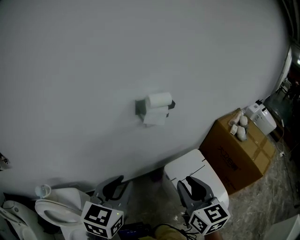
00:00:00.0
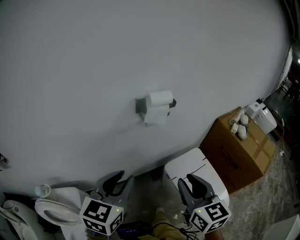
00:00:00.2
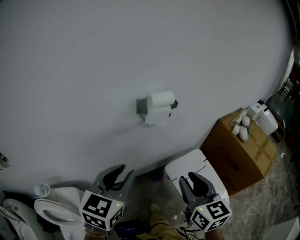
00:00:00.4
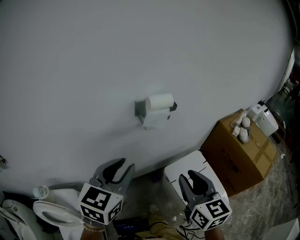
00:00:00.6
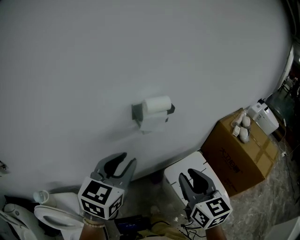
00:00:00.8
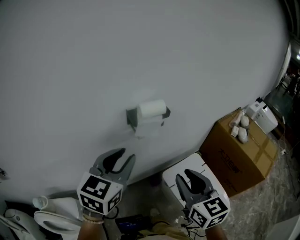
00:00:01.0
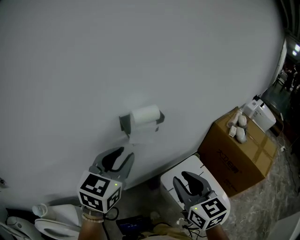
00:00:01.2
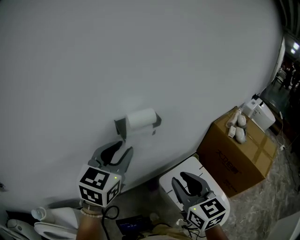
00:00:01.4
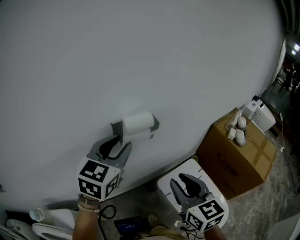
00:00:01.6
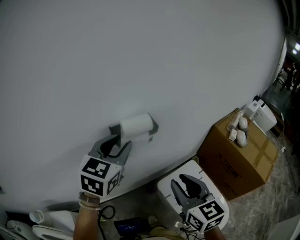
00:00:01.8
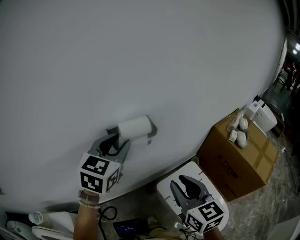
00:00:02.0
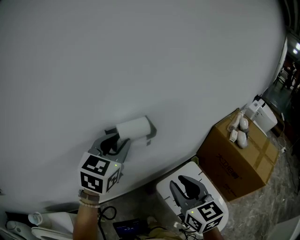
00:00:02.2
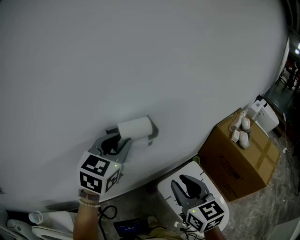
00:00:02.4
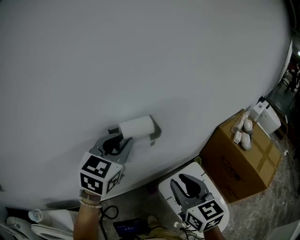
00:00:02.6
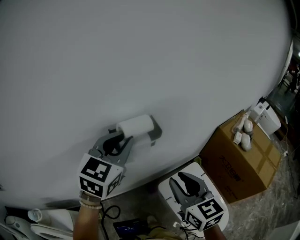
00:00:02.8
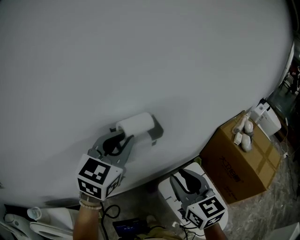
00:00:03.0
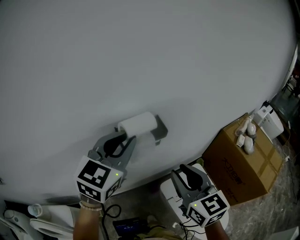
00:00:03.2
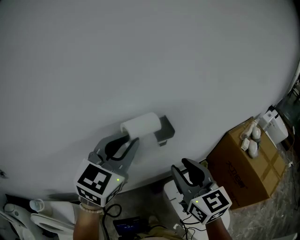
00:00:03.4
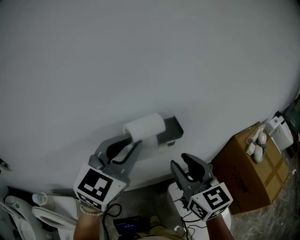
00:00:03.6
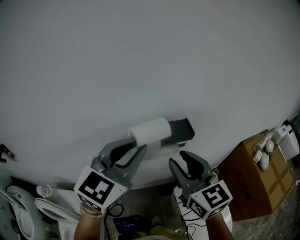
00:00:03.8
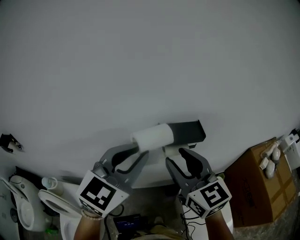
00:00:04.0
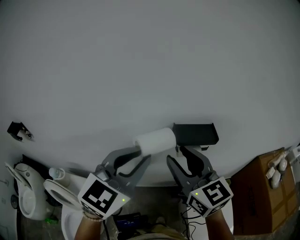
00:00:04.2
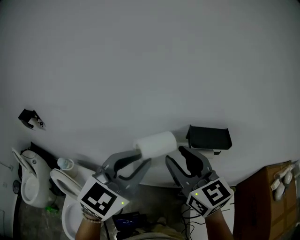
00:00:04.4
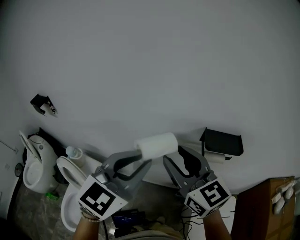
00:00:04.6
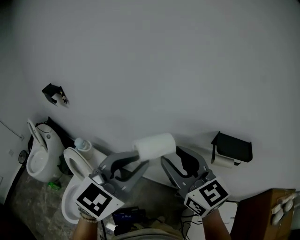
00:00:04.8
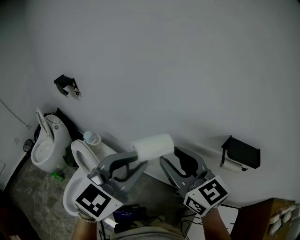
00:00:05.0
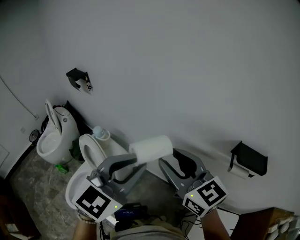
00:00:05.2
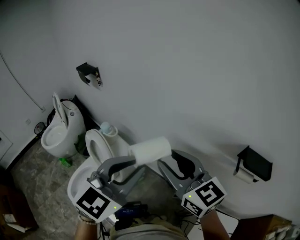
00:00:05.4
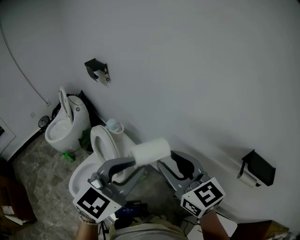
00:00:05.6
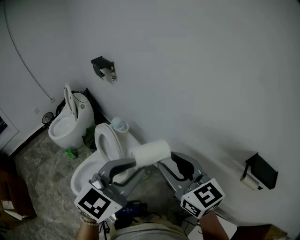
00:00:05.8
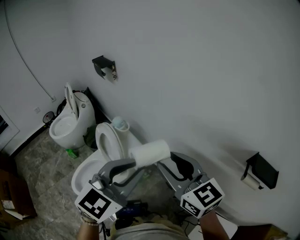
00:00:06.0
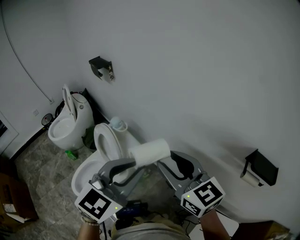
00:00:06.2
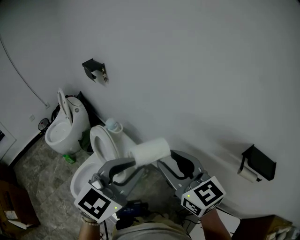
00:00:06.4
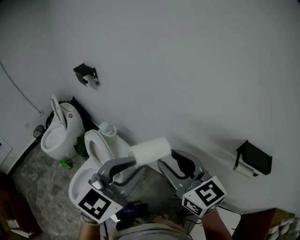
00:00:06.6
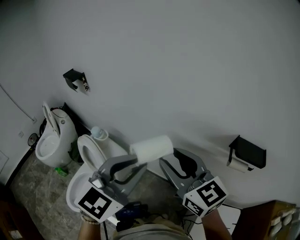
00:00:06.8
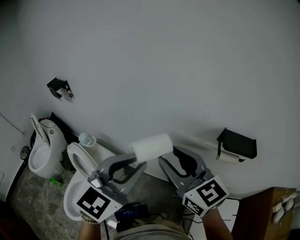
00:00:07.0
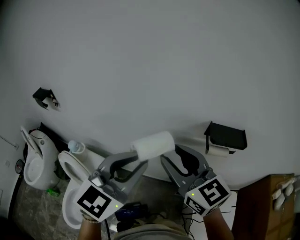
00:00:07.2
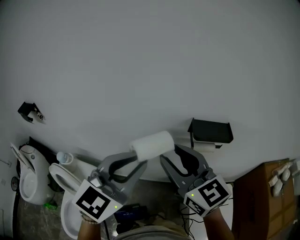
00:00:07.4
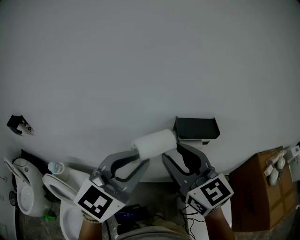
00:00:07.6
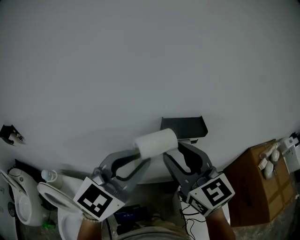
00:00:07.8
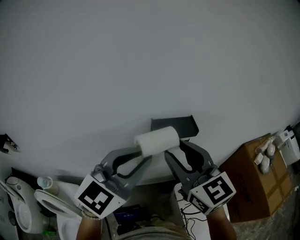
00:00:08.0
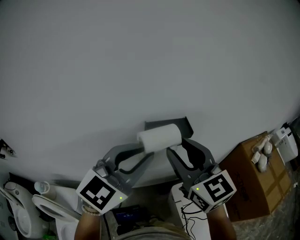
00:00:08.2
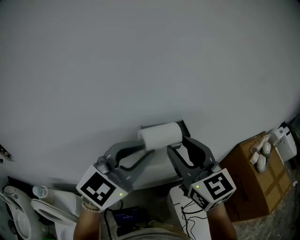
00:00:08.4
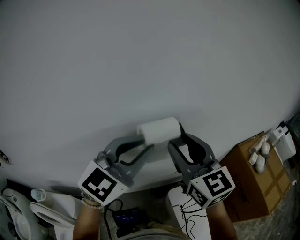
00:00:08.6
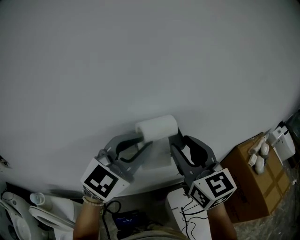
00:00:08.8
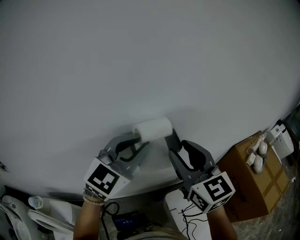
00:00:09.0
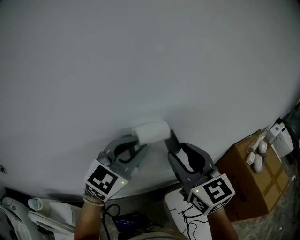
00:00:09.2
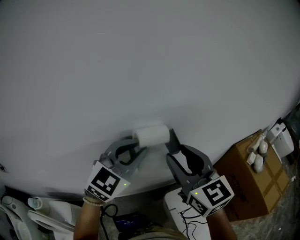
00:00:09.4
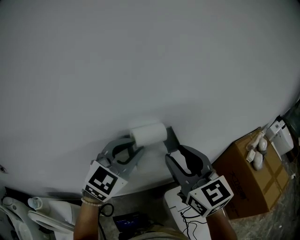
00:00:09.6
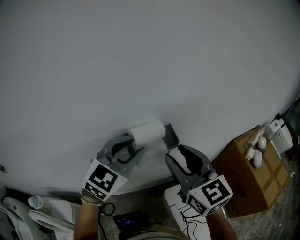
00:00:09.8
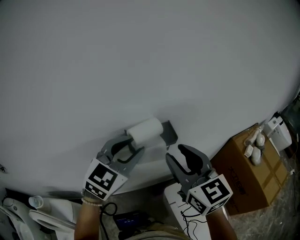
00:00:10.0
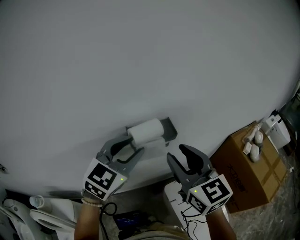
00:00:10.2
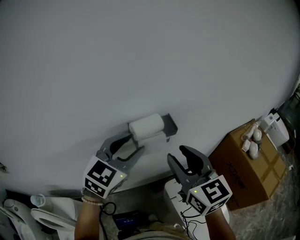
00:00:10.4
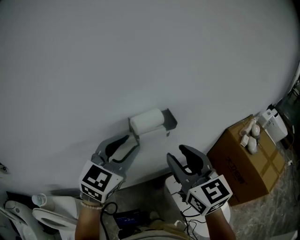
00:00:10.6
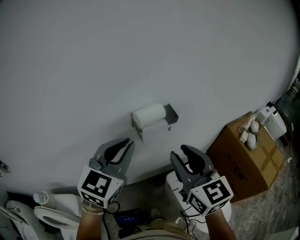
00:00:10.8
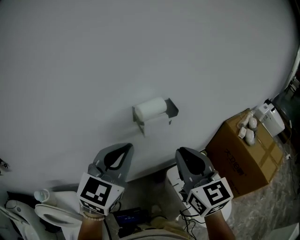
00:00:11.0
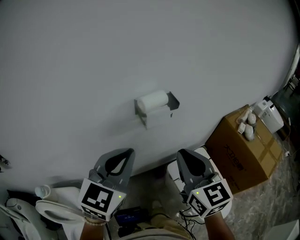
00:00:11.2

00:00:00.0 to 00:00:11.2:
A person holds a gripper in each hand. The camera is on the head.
00:00:00.0 to 00:00:01.6: The right gripper shifts some 15 cm forward. The left gripper moves forward, approximately 25 cm.
00:00:01.6 to 00:00:03.2: The right gripper is displaced forward by approximately 5 cm.
00:00:03.2 to 00:00:04.8: The left gripper moves about 25 cm, and turns by approximately 30 degrees, while the right gripper ends up roughly 30 cm from where it was, and rotates approximately 50 degrees.
00:00:04.8 to 00:00:06.4: The two grippers go about 15 cm to the left. The right gripper changes its angle by some 20 degrees.
00:00:06.4 to 00:00:08.0: The left gripper shifts by roughly 30 cm, and rotates about 50 degrees, while the right gripper moves approximately 30 cm, and turns by roughly 50 degrees.
00:00:08.0 to 00:00:09.6: The right gripper shifts about 10 cm forward and to the right, while the left gripper goes roughly 15 cm forward.
00:00:09.6 to 00:00:11.2: The two grippers go approximately 20 cm backward. The left gripper opens and closes again; the right gripper closes its fingers.

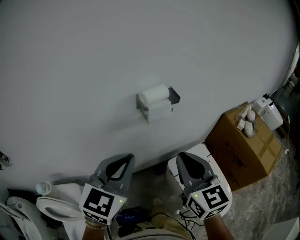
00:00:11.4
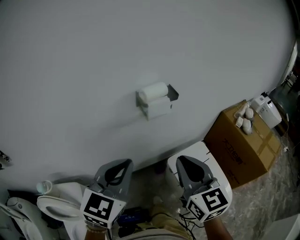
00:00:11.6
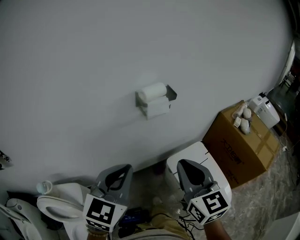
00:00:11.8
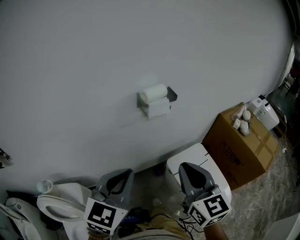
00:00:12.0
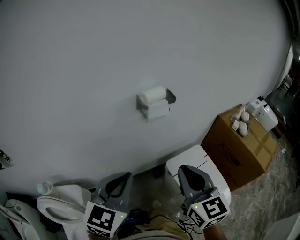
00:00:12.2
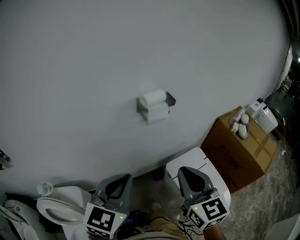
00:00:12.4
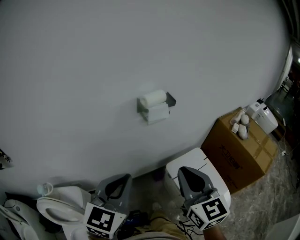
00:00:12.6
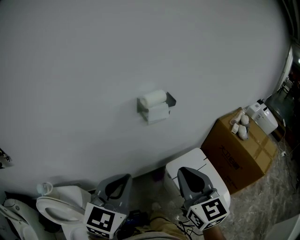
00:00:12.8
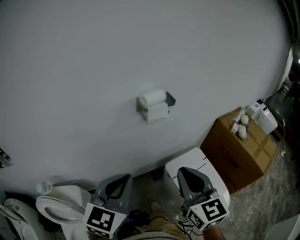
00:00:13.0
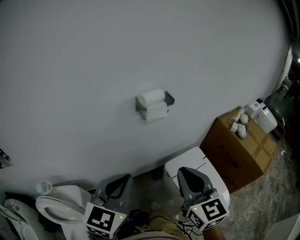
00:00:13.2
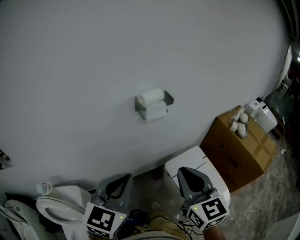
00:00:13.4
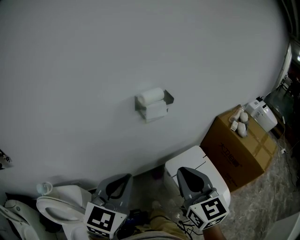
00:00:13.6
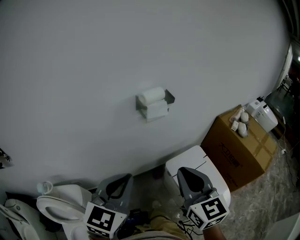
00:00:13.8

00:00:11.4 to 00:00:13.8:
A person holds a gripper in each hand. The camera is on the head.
00:00:11.4 to 00:00:12.6: The grippers both shift backward by approximately 10 cm.
00:00:12.6 to 00:00:13.8: Neither gripper changes place.

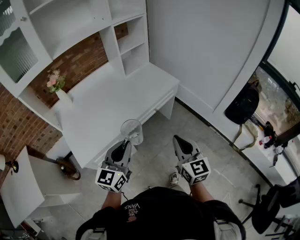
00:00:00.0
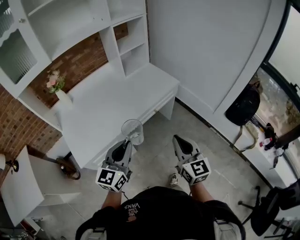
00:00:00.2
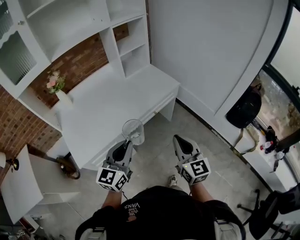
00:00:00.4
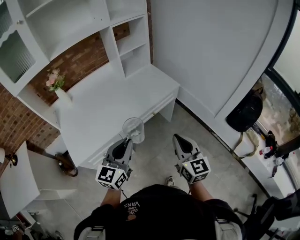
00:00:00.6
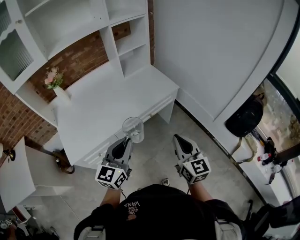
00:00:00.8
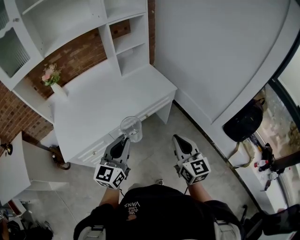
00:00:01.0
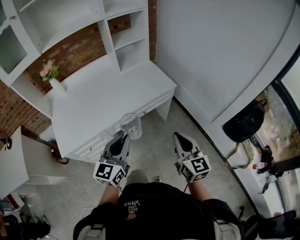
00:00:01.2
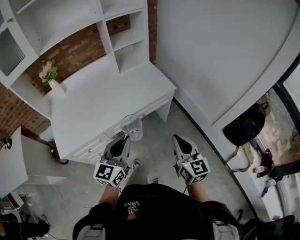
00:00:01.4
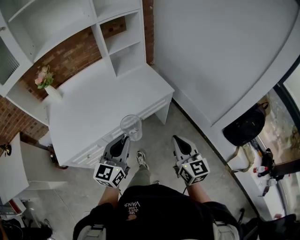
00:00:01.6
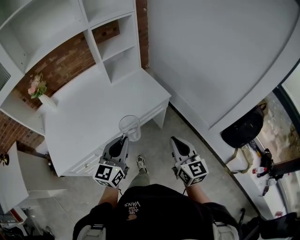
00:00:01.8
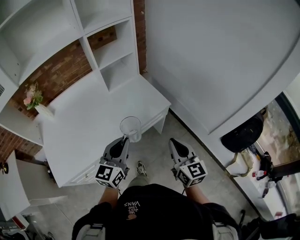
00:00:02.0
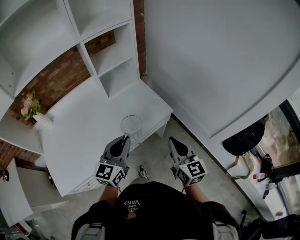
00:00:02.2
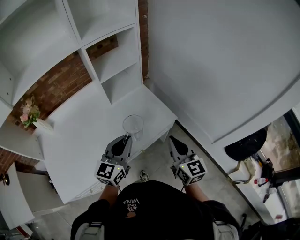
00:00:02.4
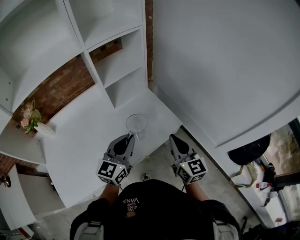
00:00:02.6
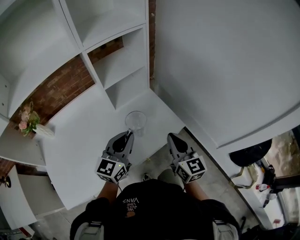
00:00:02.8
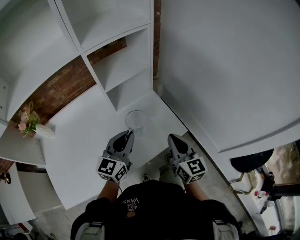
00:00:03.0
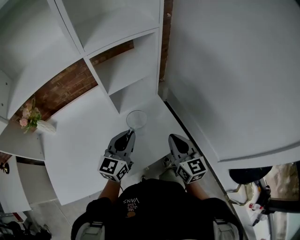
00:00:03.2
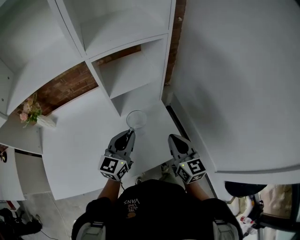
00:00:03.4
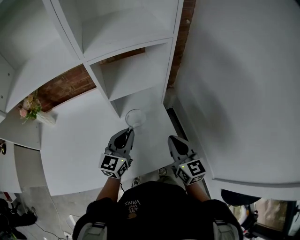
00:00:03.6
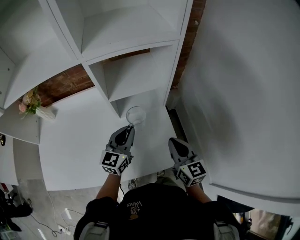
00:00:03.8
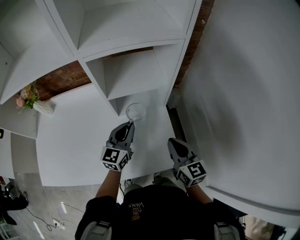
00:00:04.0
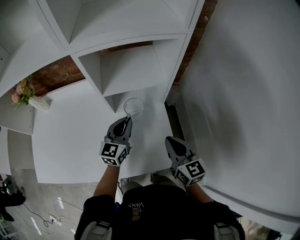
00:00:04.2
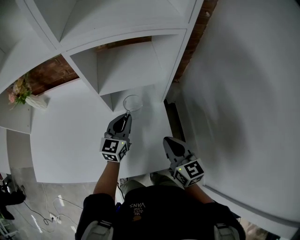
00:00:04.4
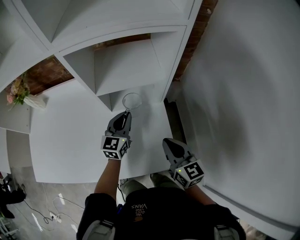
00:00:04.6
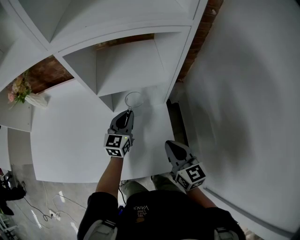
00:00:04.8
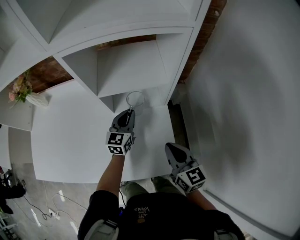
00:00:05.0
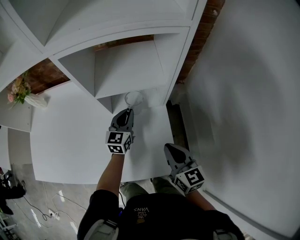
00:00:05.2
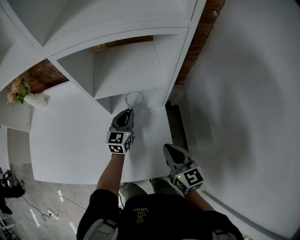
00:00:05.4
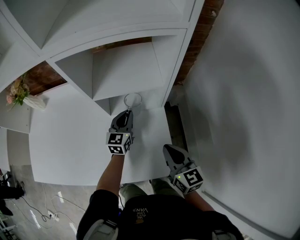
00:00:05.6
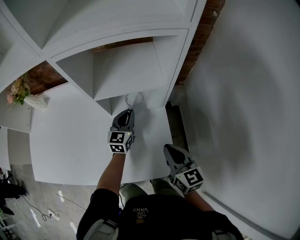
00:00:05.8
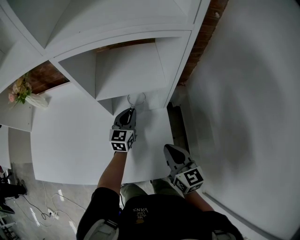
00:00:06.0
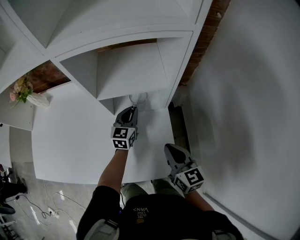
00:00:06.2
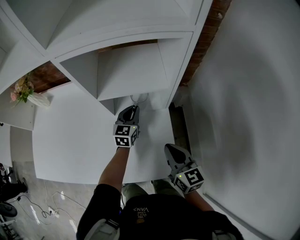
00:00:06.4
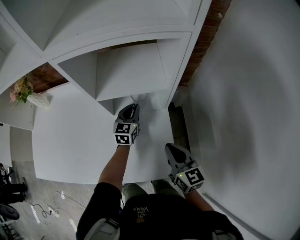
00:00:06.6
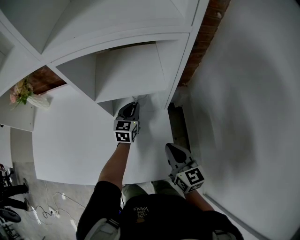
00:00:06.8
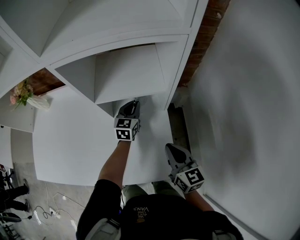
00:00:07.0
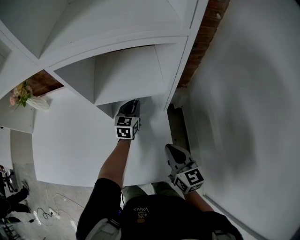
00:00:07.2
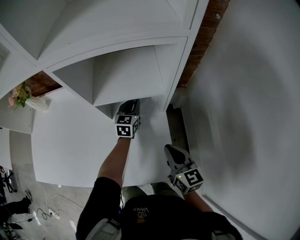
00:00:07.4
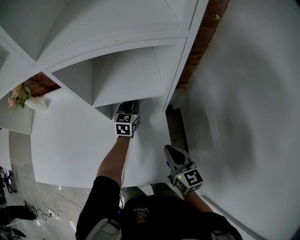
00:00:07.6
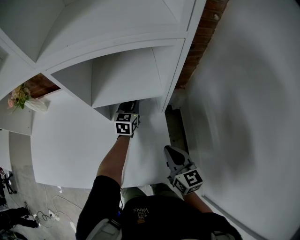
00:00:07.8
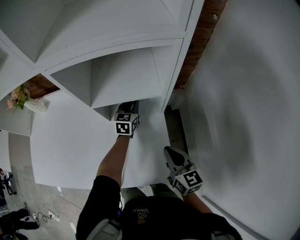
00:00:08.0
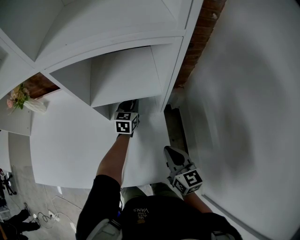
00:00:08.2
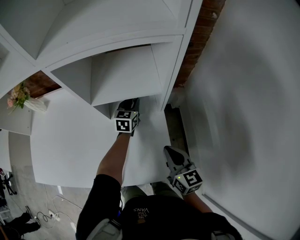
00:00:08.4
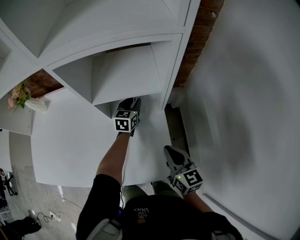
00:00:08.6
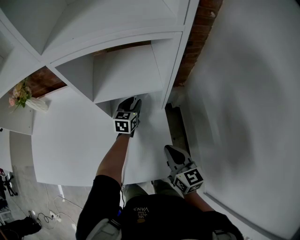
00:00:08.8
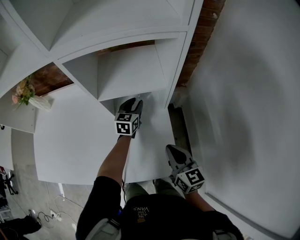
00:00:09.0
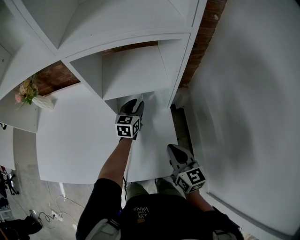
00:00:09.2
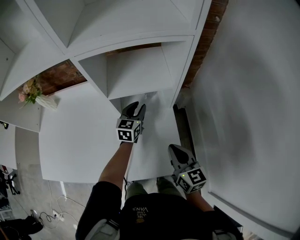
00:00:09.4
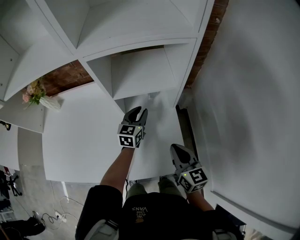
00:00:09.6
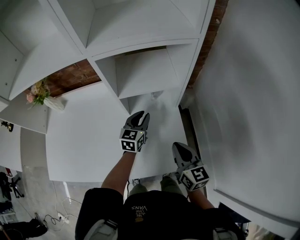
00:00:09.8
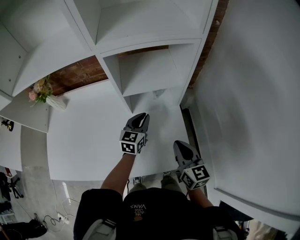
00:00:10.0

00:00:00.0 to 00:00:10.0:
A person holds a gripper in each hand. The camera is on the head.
00:00:00.0 to 00:00:01.4: Both grippers travel together to the right and forward, about 20 cm.
00:00:01.4 to 00:00:02.8: Both grippers move forward, roughly 35 cm.
00:00:02.8 to 00:00:04.2: The right gripper moves approximately 20 cm, and turns by about 30 degrees. Meanwhile the left gripper shifts by some 25 cm, and swivels about 30 degrees.
00:00:04.2 to 00:00:05.8: The right gripper heads downward, covering roughly 5 cm. Meanwhile the left gripper shifts roughly 15 cm downward and forward.
00:00:05.8 to 00:00:07.2: The left gripper moves forward, some 5 cm.
00:00:07.2 to 00:00:08.6: The grippers make only small movements.
00:00:08.6 to 00:00:10.0: The right gripper travels to the left and upward by some 10 cm. Meanwhile the left gripper heads backward, upward and to the left, covering approximately 20 cm.
